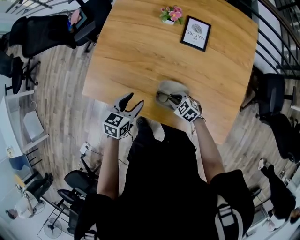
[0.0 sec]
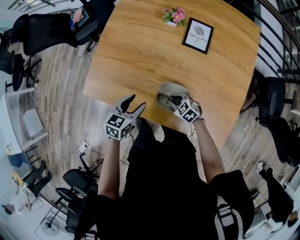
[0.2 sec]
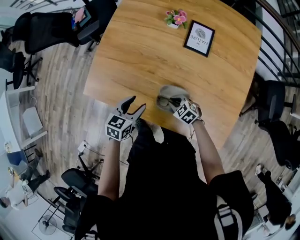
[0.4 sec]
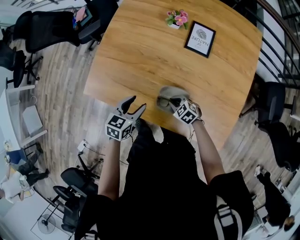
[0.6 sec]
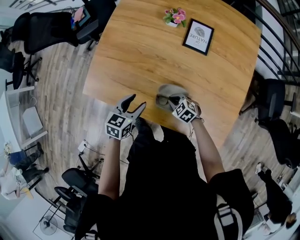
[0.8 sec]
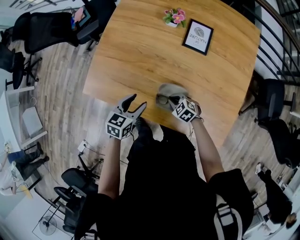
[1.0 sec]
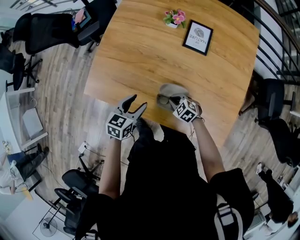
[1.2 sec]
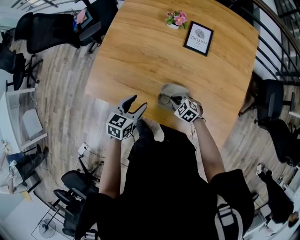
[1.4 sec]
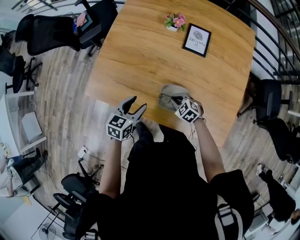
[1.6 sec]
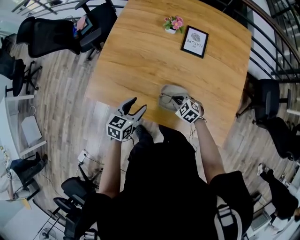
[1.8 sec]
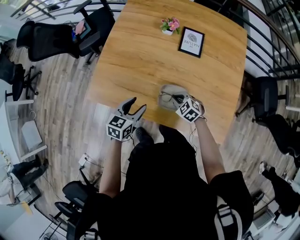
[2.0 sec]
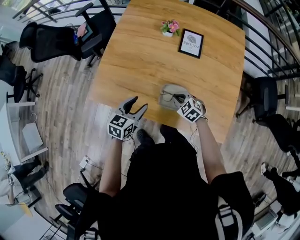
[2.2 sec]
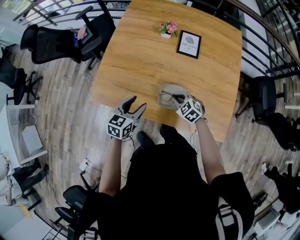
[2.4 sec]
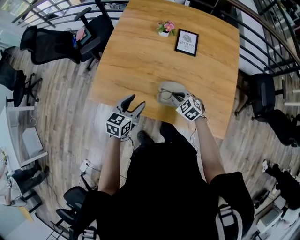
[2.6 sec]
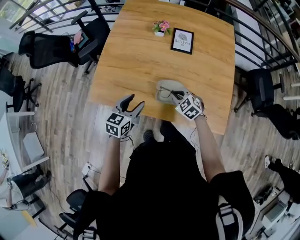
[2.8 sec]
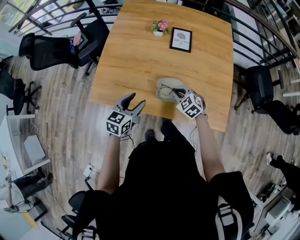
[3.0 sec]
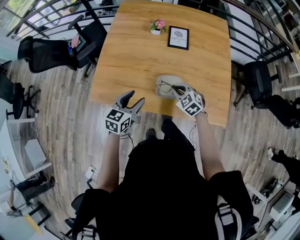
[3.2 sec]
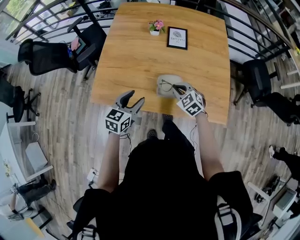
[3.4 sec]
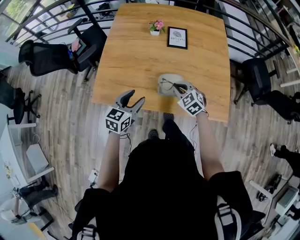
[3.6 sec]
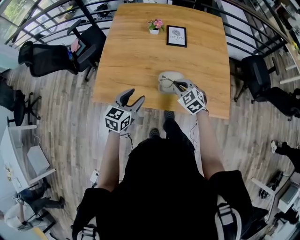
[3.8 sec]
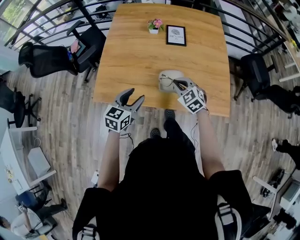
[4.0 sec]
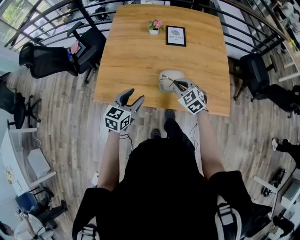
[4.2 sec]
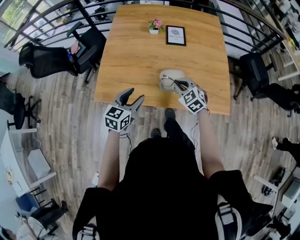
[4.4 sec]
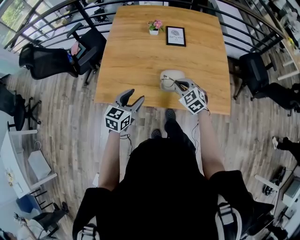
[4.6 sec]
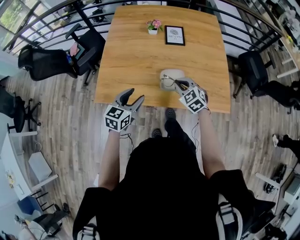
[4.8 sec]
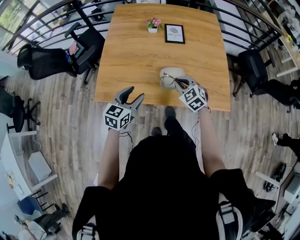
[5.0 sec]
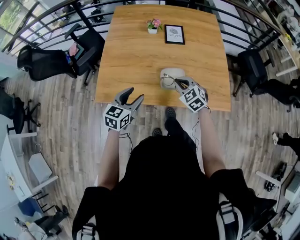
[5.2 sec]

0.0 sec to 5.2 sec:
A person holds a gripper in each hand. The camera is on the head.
0.0 sec to 1.8 sec: The grippers move only a little.
1.8 sec to 3.4 sec: The left gripper heads upward, covering some 5 cm. The right gripper heads upward, covering about 10 cm, and swivels roughly 20 degrees.
3.4 sec to 5.2 sec: The right gripper changes place by some 5 cm. The left gripper shifts by roughly 5 cm.

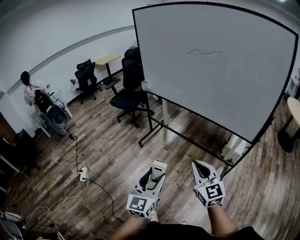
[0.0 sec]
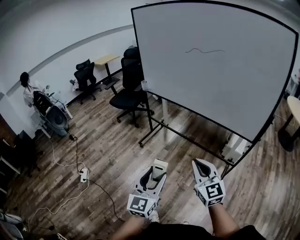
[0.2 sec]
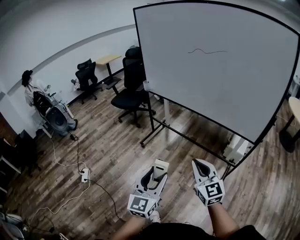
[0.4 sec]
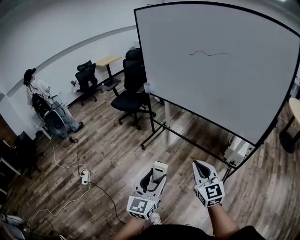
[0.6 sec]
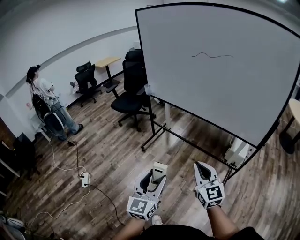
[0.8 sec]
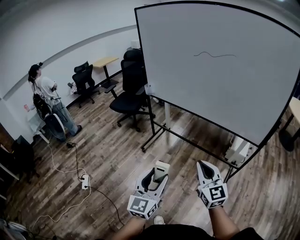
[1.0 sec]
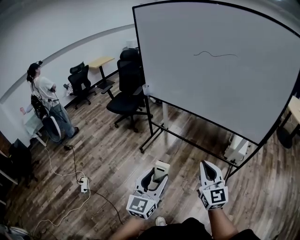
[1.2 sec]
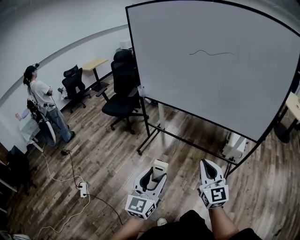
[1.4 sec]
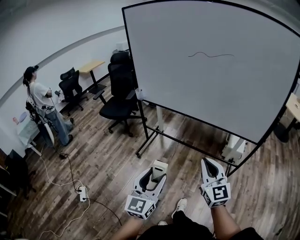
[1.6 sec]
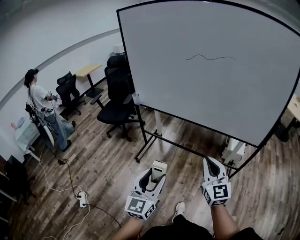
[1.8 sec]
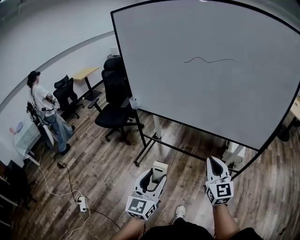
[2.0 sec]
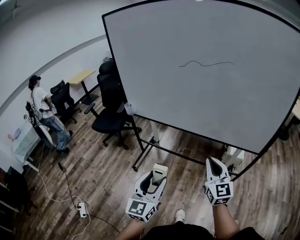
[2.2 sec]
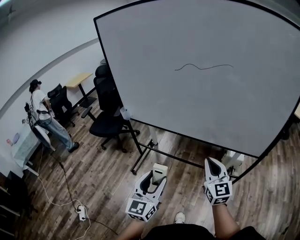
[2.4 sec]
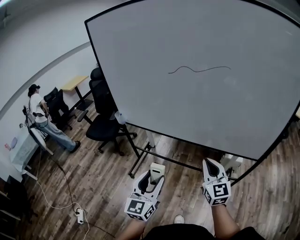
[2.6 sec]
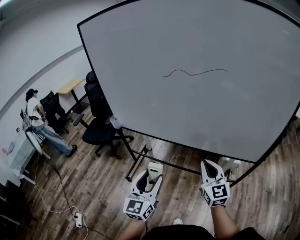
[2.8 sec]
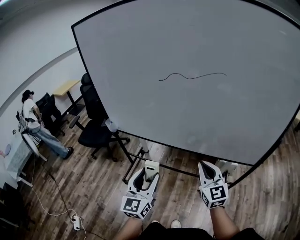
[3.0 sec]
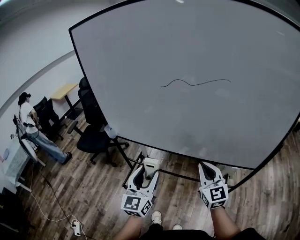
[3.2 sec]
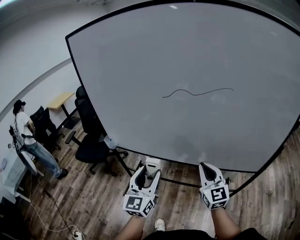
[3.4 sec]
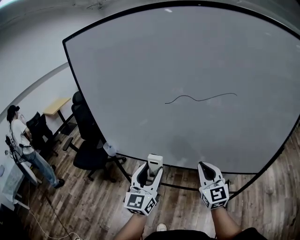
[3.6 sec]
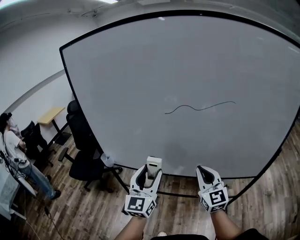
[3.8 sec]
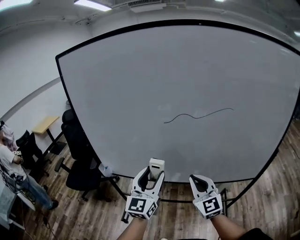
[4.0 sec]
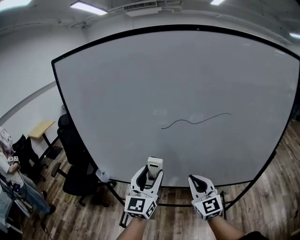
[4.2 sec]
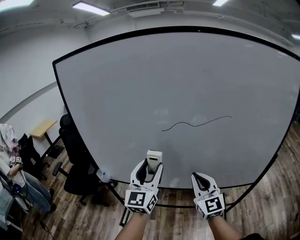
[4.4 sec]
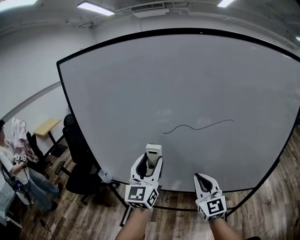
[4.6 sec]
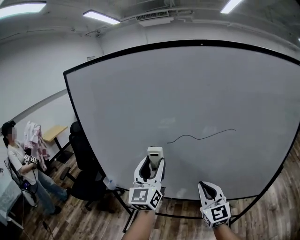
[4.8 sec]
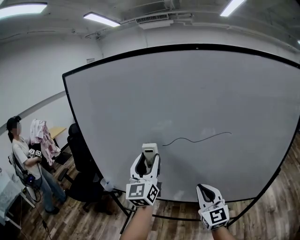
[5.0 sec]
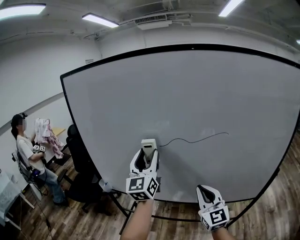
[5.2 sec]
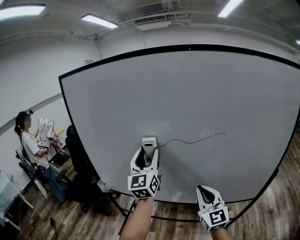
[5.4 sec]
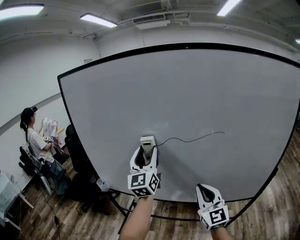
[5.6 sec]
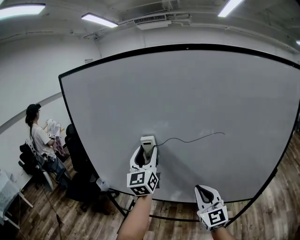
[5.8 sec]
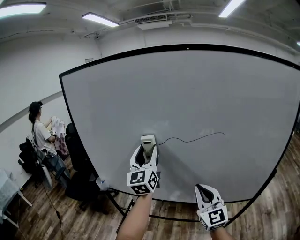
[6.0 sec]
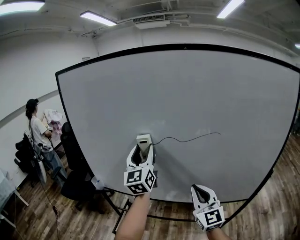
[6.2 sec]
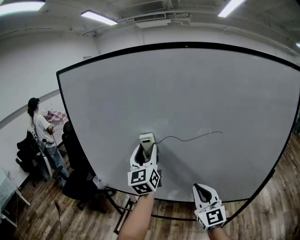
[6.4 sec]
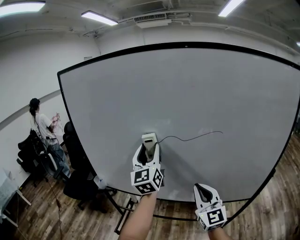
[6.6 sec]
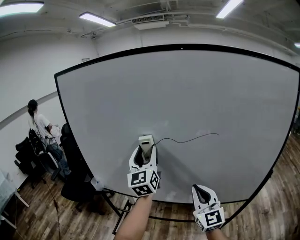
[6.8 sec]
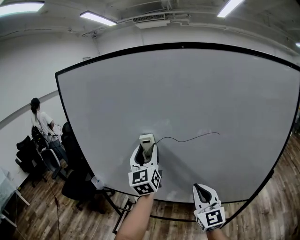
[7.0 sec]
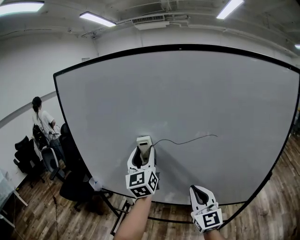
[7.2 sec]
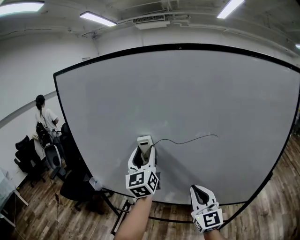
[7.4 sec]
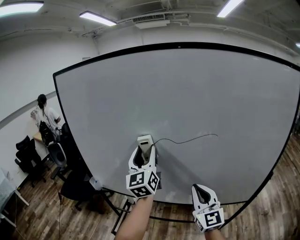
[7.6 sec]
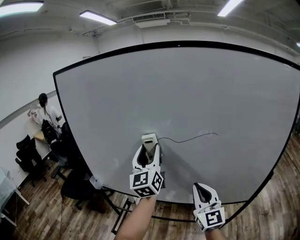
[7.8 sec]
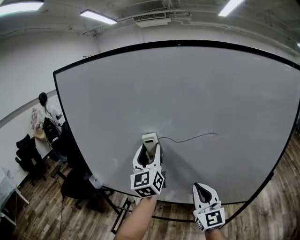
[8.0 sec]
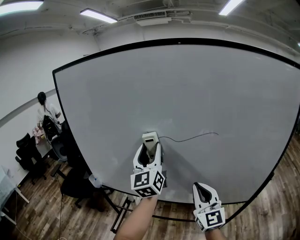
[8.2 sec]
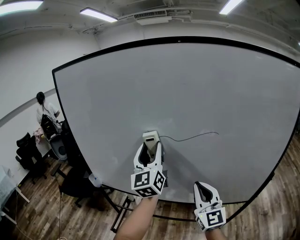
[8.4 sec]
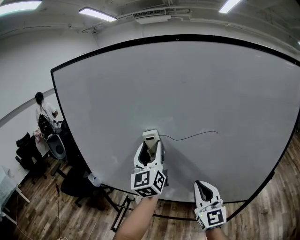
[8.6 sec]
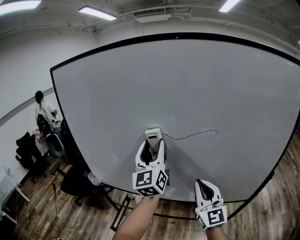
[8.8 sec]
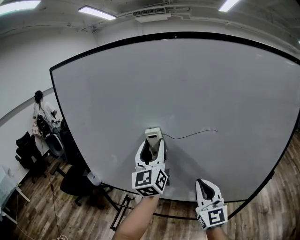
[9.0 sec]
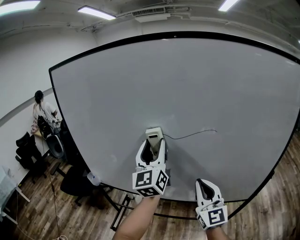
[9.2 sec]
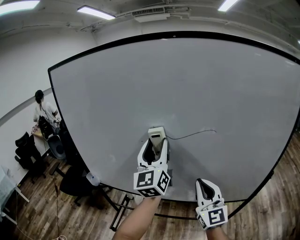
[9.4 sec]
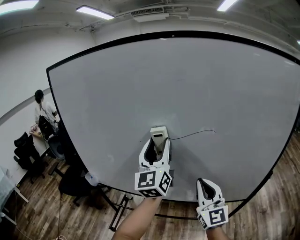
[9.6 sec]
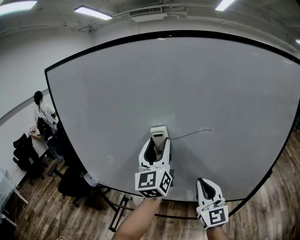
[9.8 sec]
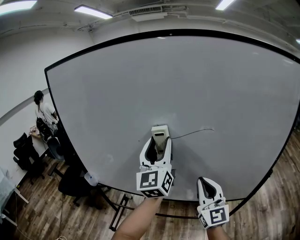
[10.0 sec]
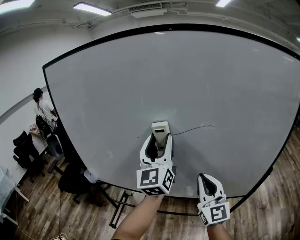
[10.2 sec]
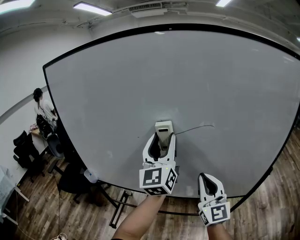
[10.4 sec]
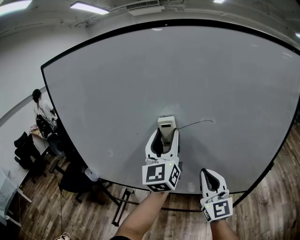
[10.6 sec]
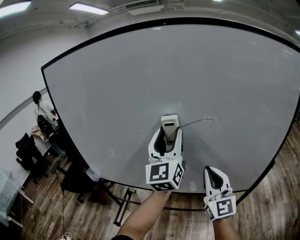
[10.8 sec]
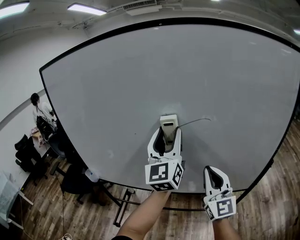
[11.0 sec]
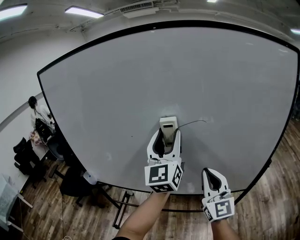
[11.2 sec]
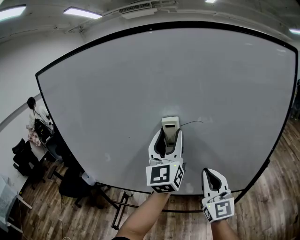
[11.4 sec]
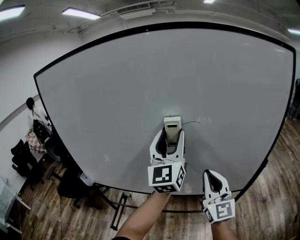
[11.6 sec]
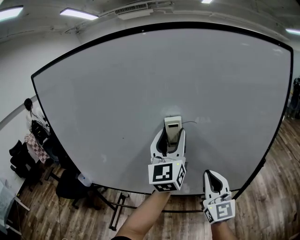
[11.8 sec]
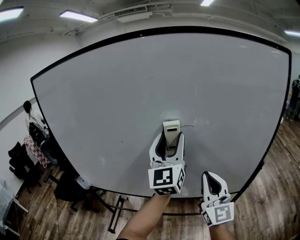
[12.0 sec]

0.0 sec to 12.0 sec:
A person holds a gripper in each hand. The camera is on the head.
0.0 sec to 1.6 sec: Both grippers travel together forward and to the left, about 15 cm.
1.6 sec to 3.0 sec: Both grippers move forward, about 30 cm.
3.0 sec to 4.4 sec: The left gripper shifts roughly 25 cm forward and upward. Meanwhile the right gripper heads forward, upward and to the left, covering approximately 15 cm.
4.4 sec to 6.0 sec: The left gripper moves forward and upward, about 10 cm; the right gripper goes about 5 cm to the right.
6.0 sec to 7.6 sec: The grippers stay close to where they were, moving slightly.
7.6 sec to 9.0 sec: There are only small adjustments of the grippers.
9.0 sec to 10.4 sec: The left gripper heads to the right, covering approximately 5 cm.
10.4 sec to 12.0 sec: The left gripper goes some 10 cm to the right. The right gripper is displaced to the right by about 5 cm.

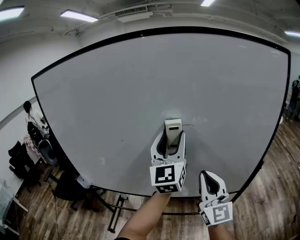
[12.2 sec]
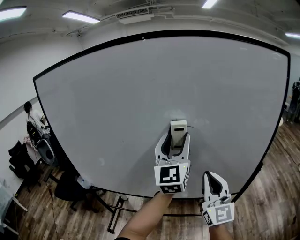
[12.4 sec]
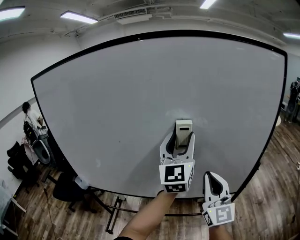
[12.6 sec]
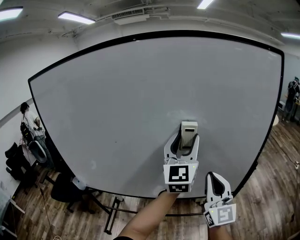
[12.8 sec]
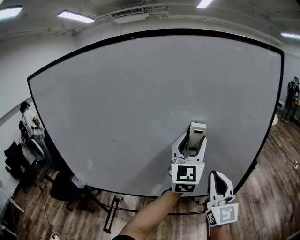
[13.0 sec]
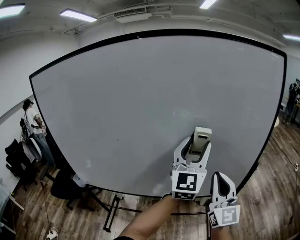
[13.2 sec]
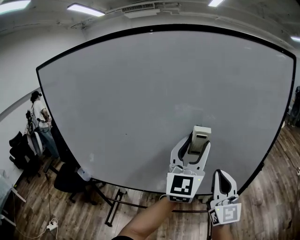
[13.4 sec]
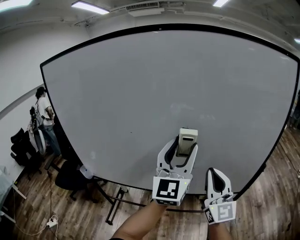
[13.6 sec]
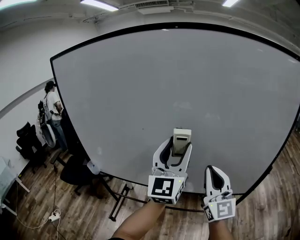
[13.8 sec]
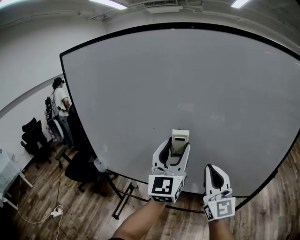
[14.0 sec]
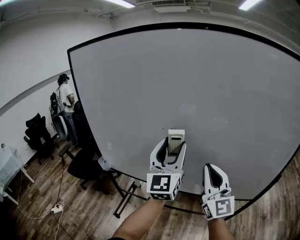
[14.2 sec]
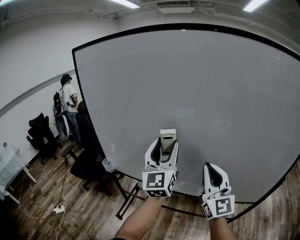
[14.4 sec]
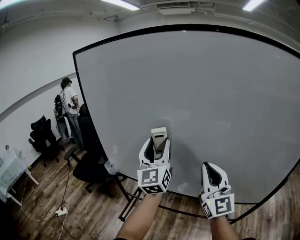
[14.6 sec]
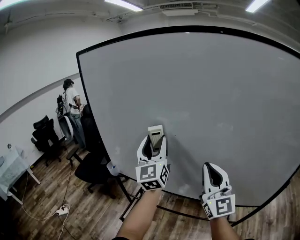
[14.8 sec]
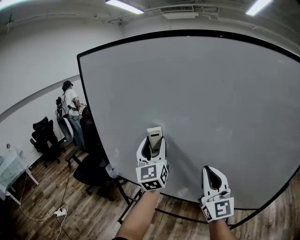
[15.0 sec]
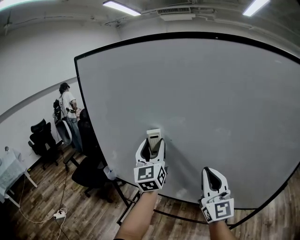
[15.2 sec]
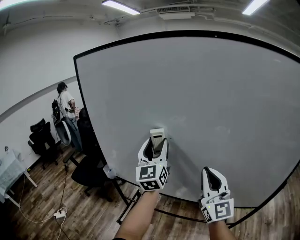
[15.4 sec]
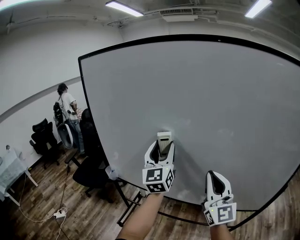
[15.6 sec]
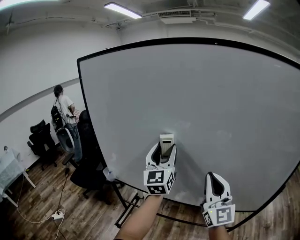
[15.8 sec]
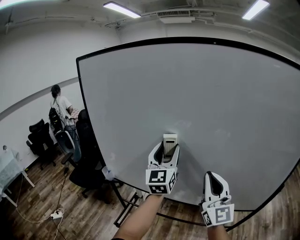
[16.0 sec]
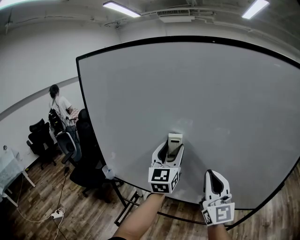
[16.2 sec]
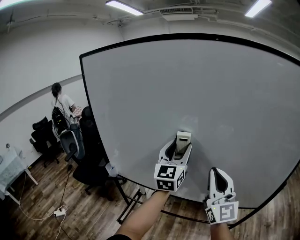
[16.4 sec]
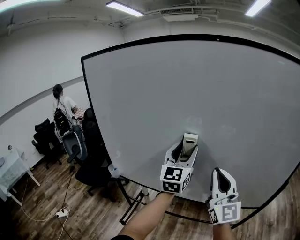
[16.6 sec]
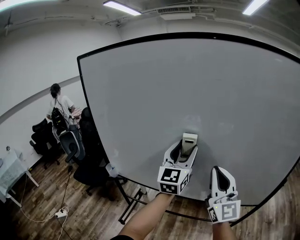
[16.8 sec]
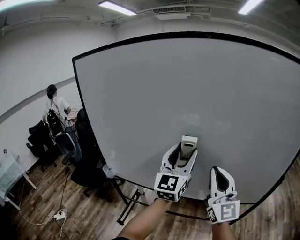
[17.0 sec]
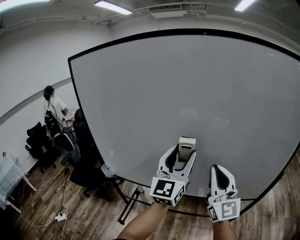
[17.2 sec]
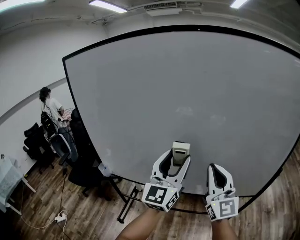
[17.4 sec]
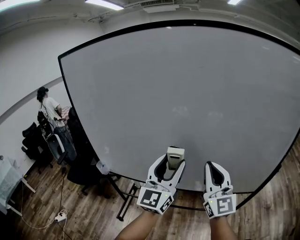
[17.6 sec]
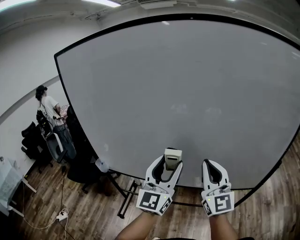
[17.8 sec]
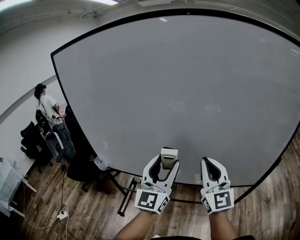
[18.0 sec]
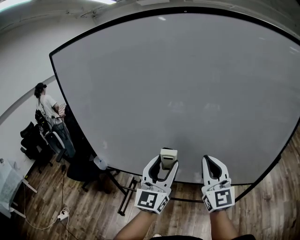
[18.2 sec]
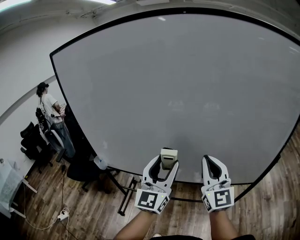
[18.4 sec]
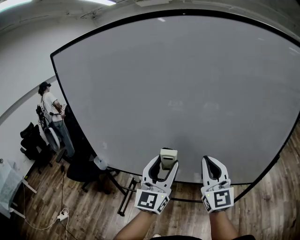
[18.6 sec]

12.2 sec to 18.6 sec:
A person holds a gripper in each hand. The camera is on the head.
12.2 sec to 13.8 sec: The right gripper moves about 10 cm to the right and comes back. The left gripper is displaced backward by about 5 cm, and moves roughly 15 cm to the right and comes back.
13.8 sec to 15.4 sec: The right gripper travels to the left and forward by roughly 15 cm; the left gripper heads to the left and forward, covering approximately 25 cm, and swivels some 20 degrees.
15.4 sec to 17.0 sec: The left gripper shifts approximately 15 cm to the right and backward, and rotates roughly 20 degrees.
17.0 sec to 18.6 sec: The left gripper shifts approximately 10 cm downward and backward. The right gripper moves some 5 cm.
